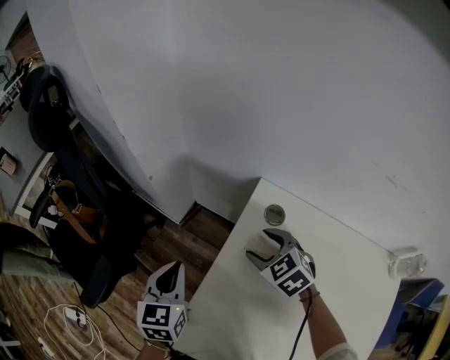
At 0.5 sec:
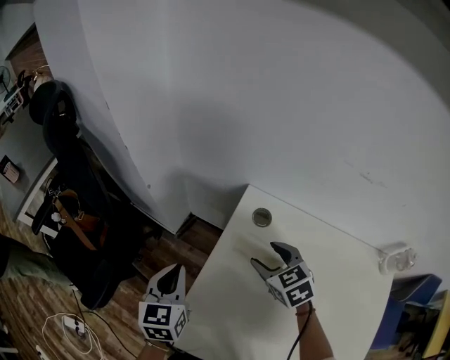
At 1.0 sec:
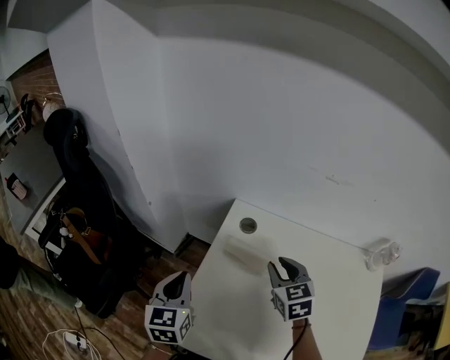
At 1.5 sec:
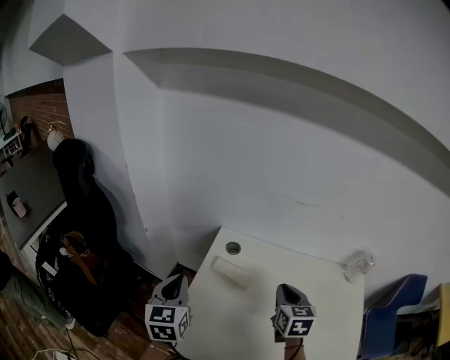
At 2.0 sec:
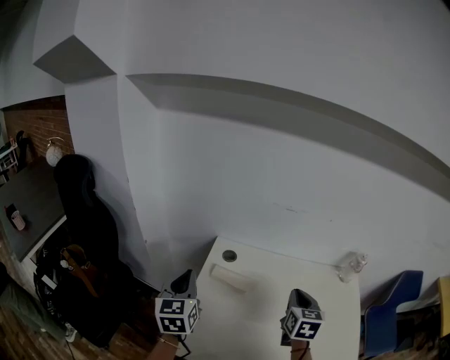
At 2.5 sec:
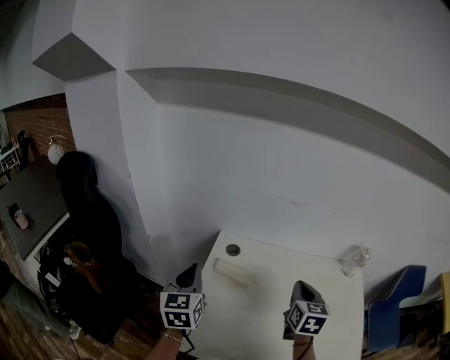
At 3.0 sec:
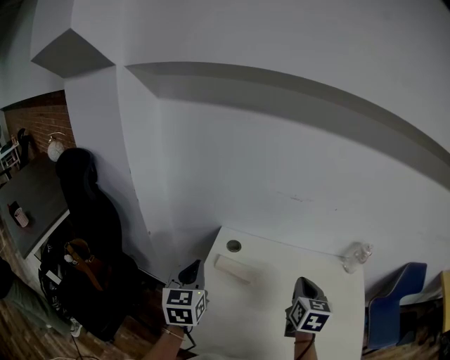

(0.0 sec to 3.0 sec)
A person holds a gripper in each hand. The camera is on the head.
0.0 sec - 1.5 sec: The right gripper shifts some 25 cm to the right, backward and upward, turns by some 60 degrees, and closes its fingers. The left gripper heads upward and to the right, covering some 15 cm.
1.5 sec - 3.0 sec: The left gripper moves roughly 5 cm. Meanwhile the right gripper moves upward, some 5 cm.

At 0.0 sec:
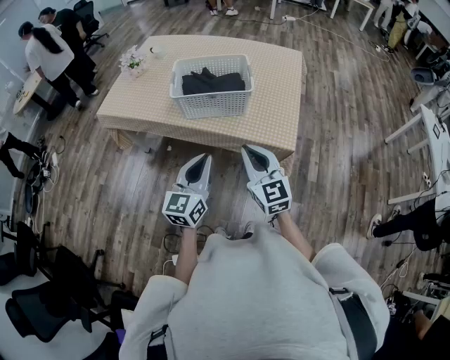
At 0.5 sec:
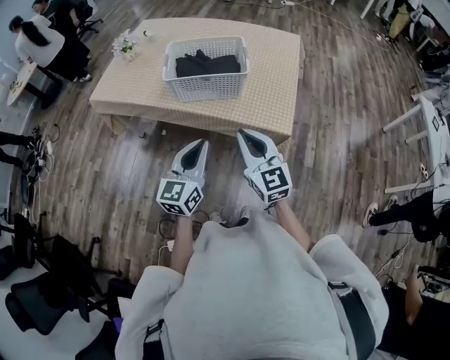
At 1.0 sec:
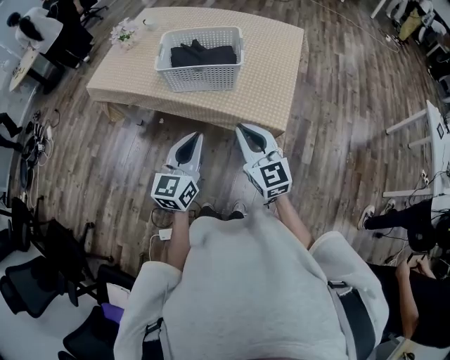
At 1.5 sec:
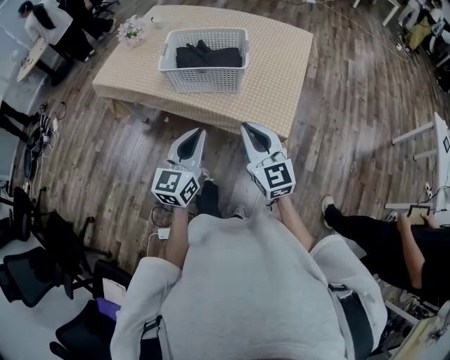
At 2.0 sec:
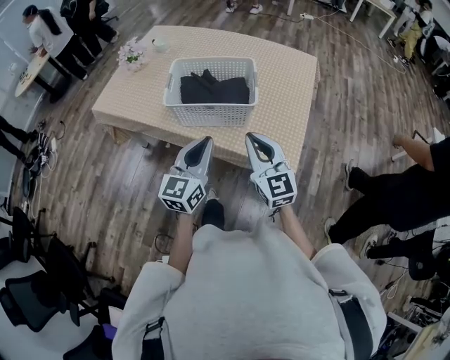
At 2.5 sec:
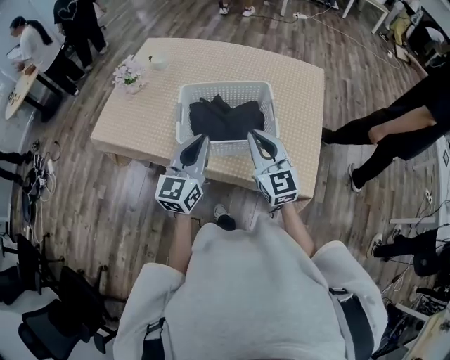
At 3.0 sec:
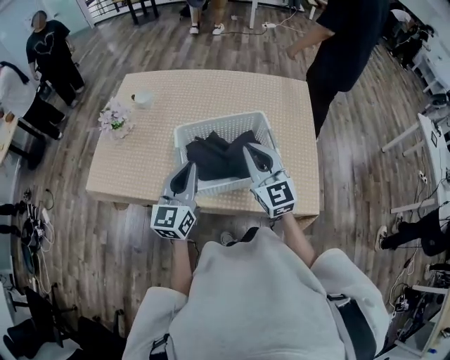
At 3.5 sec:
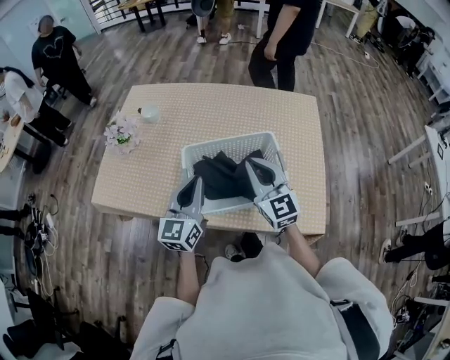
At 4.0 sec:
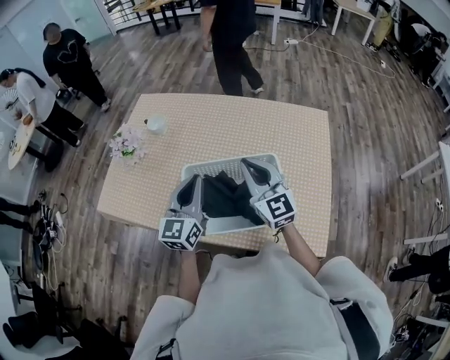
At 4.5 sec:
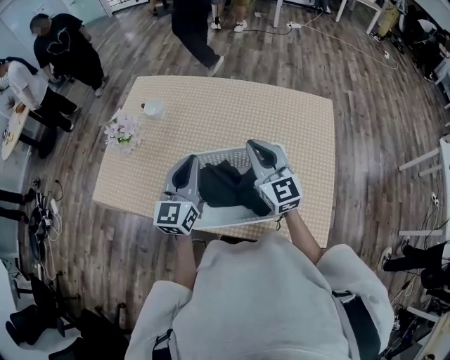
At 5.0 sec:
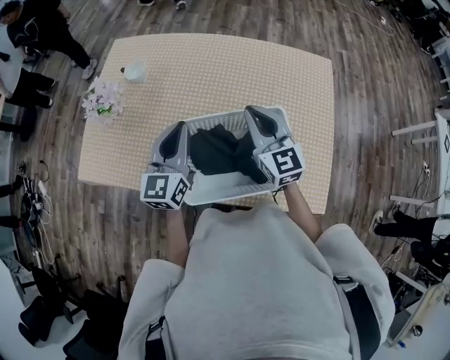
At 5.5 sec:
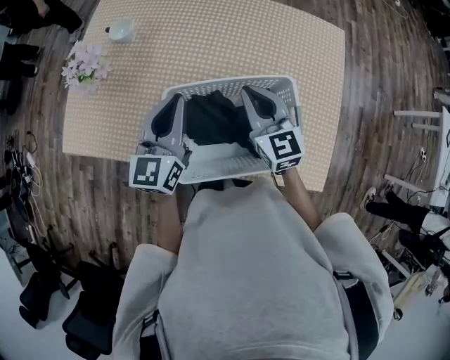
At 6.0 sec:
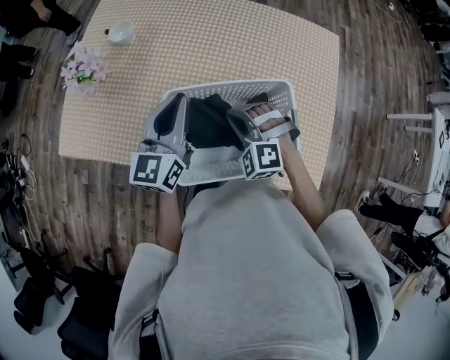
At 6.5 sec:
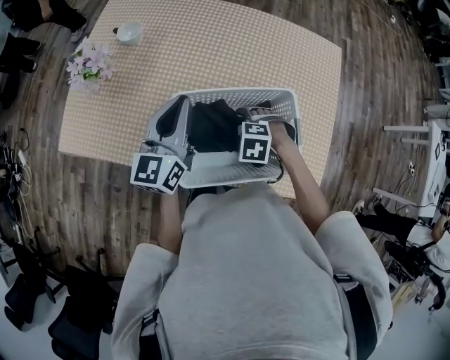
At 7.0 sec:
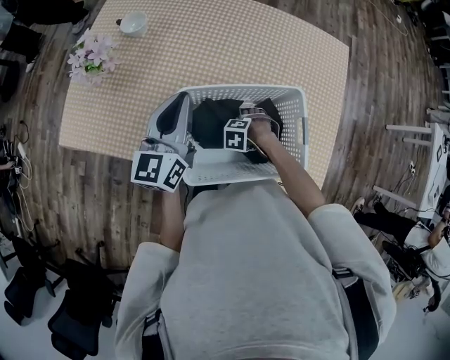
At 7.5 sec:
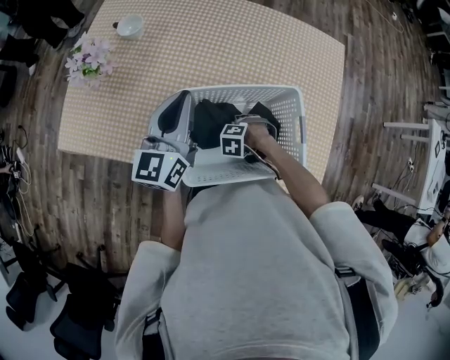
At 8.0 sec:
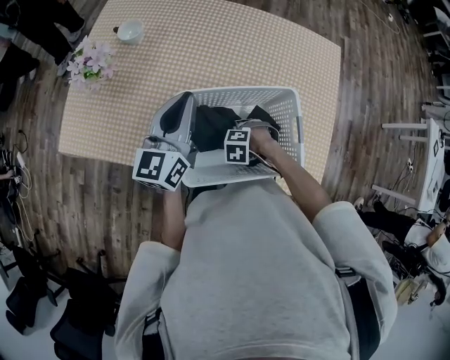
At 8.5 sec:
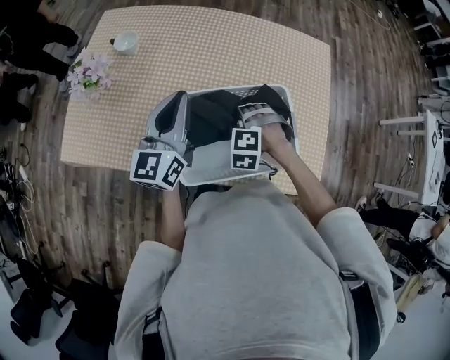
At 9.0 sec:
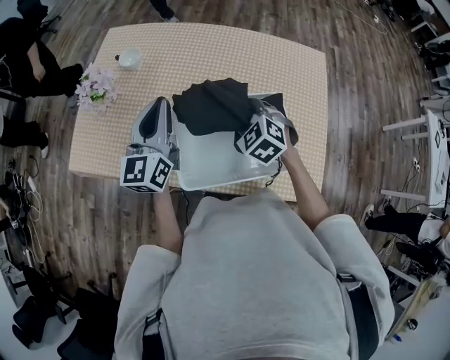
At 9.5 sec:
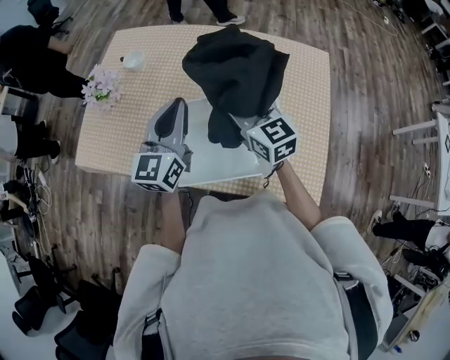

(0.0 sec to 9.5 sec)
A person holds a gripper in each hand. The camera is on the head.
0.0 sec - 2.0 sec: The two grippers go approximately 15 cm forward.
2.0 sec - 4.0 sec: The grippers both shift forward by about 30 cm.
4.0 sec - 5.5 sec: The left gripper travels forward by approximately 5 cm. Meanwhile the right gripper shifts about 10 cm downward and forward.
5.5 sec - 7.5 sec: The right gripper is displaced downward by some 25 cm, tips its fingers downward by about 70 degrees, and opens its fingers.
7.5 sec - 9.5 sec: The left gripper changes place by about 10 cm. Meanwhile the right gripper travels upward by approximately 35 cm, and points its fingers about 80 degrees further upward.

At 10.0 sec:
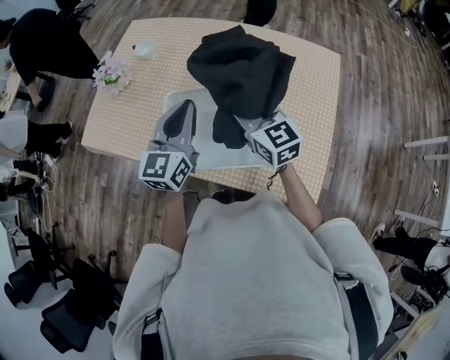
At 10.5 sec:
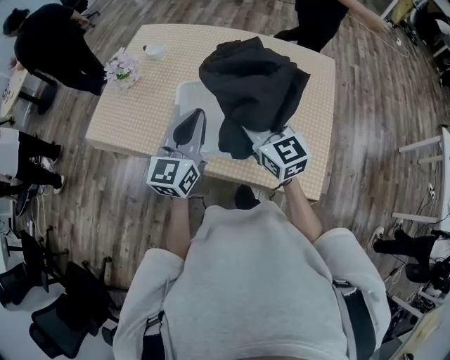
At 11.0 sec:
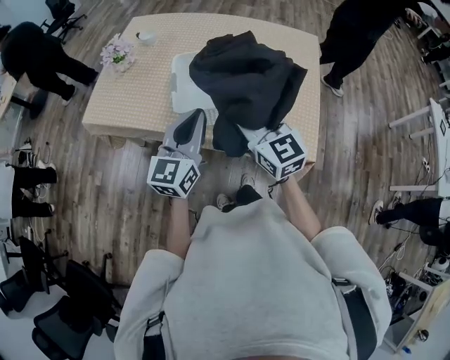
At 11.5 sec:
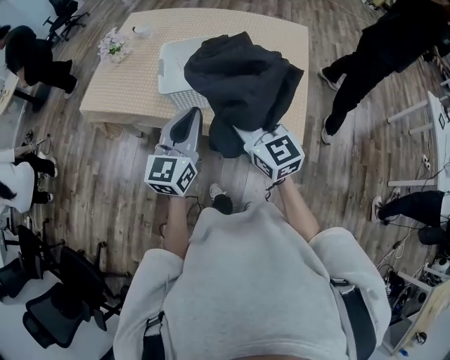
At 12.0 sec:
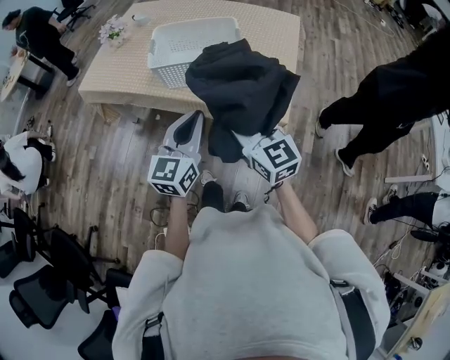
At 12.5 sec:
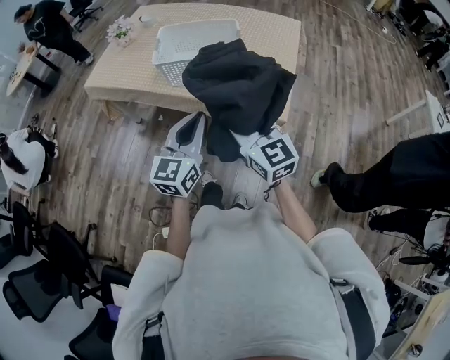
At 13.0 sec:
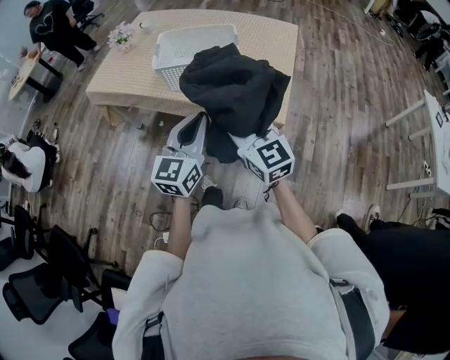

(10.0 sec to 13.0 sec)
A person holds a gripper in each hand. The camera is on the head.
10.0 sec - 11.5 sec: Both grippers travel together backward, about 30 cm.
11.5 sec - 13.0 sec: The grippers both shift backward by roughly 15 cm.

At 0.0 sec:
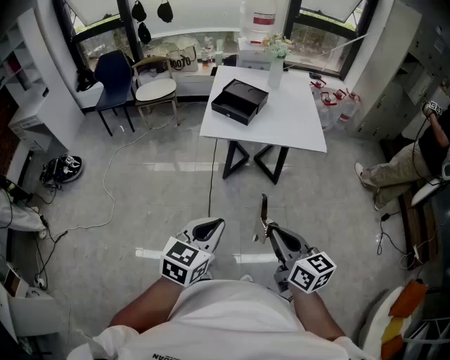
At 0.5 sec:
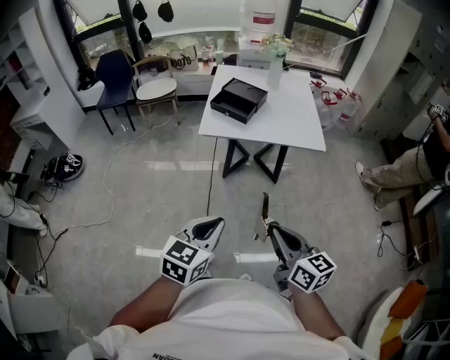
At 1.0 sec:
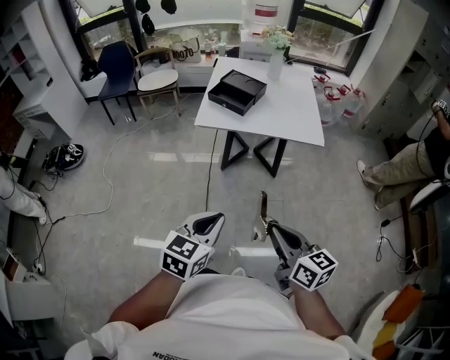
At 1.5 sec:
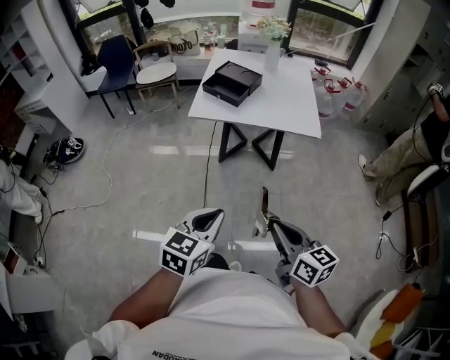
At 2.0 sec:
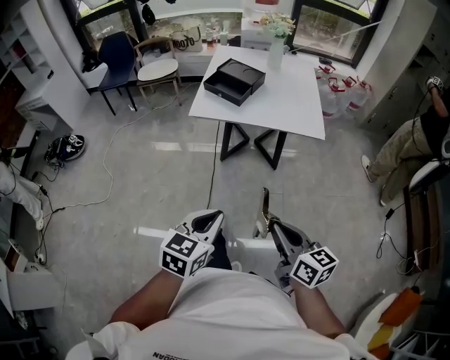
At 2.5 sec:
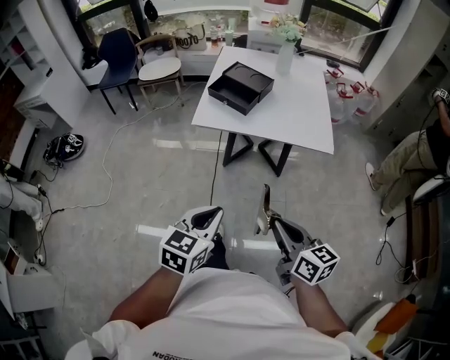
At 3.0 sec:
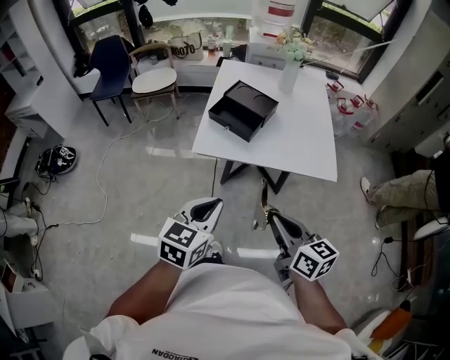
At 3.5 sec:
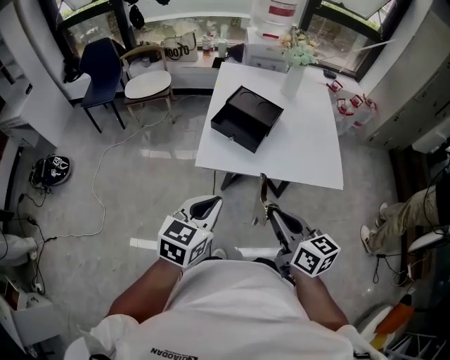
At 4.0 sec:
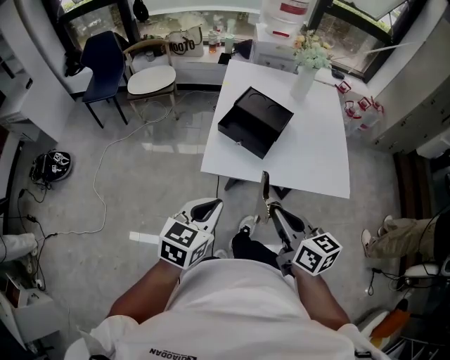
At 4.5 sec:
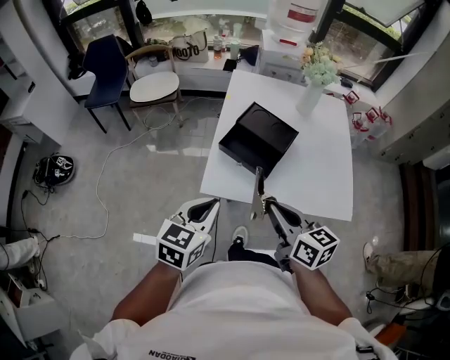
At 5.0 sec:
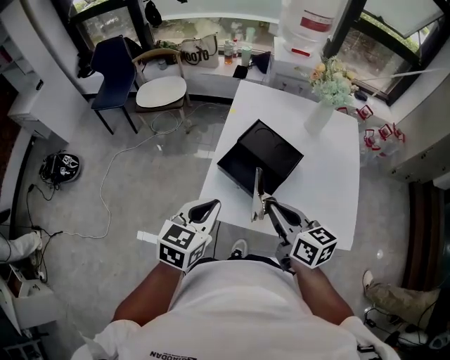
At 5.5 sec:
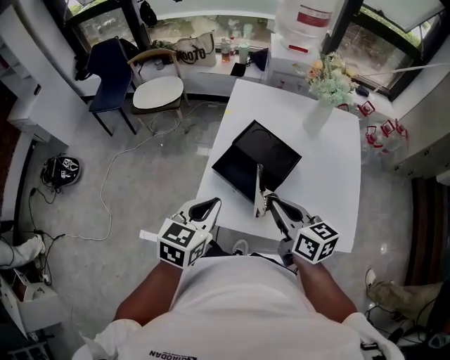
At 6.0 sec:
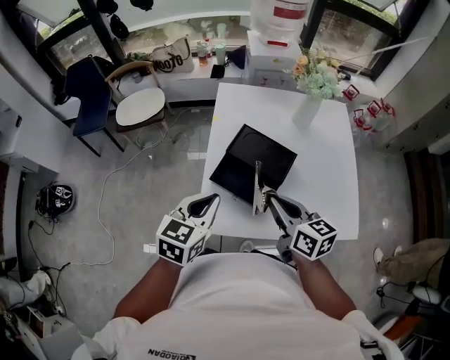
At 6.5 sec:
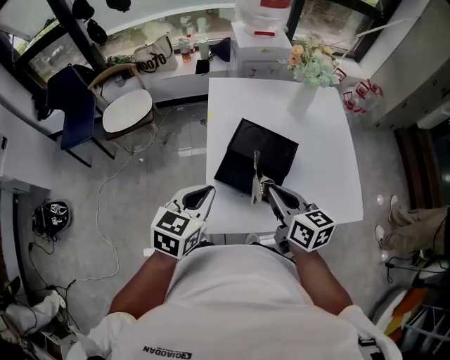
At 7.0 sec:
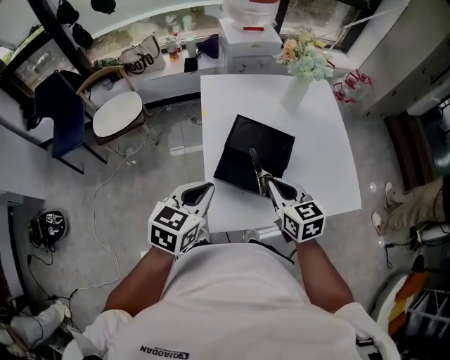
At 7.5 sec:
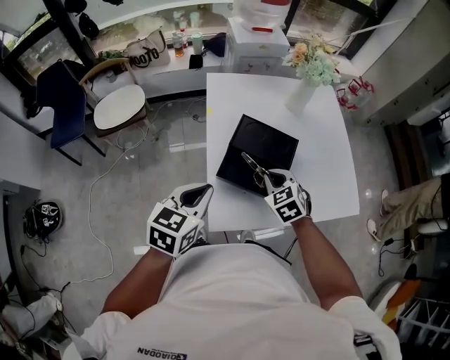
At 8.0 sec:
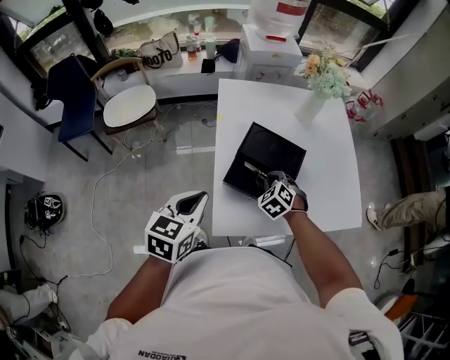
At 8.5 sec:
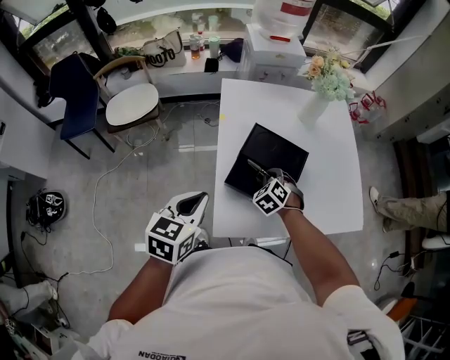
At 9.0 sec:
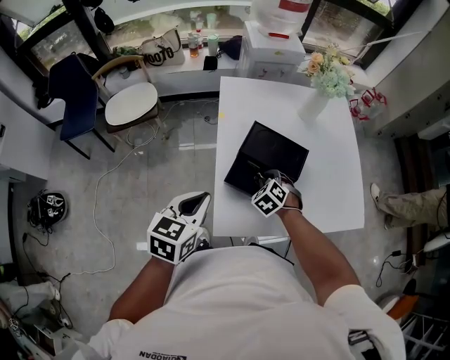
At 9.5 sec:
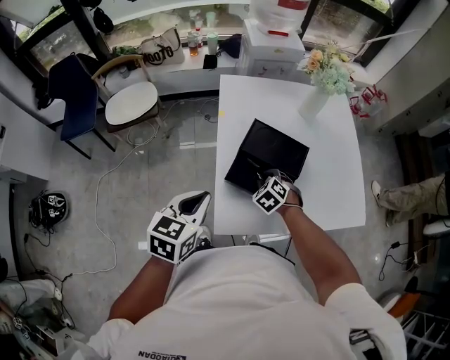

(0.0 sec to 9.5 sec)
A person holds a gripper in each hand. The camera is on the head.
0.0 sec - 2.0 sec: Both grippers move to the right, some 10 cm.
2.0 sec - 4.0 sec: The two grippers go some 35 cm forward.
4.0 sec - 5.5 sec: Both grippers travel together forward, some 20 cm.
5.5 sec - 7.5 sec: The left gripper ends up some 10 cm from where it was. Meanwhile the right gripper ends up approximately 15 cm from where it was, and changes its angle by approximately 50 degrees.
7.5 sec - 9.5 sec: The right gripper goes roughly 10 cm downward, changes its angle by approximately 20 degrees, and opens its fingers.

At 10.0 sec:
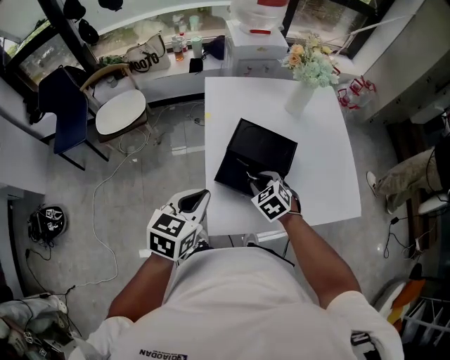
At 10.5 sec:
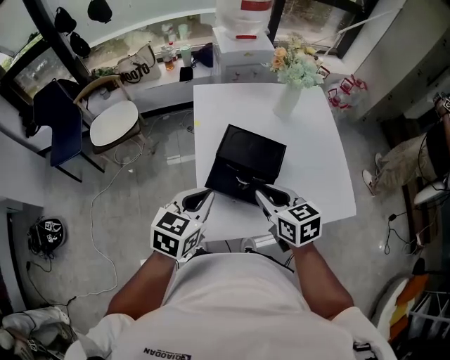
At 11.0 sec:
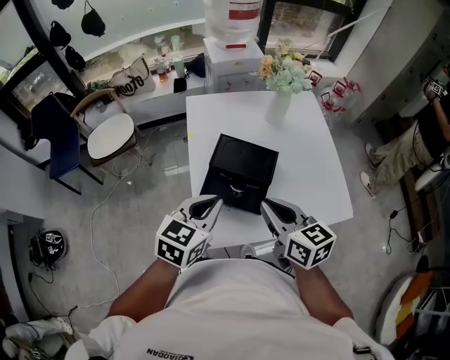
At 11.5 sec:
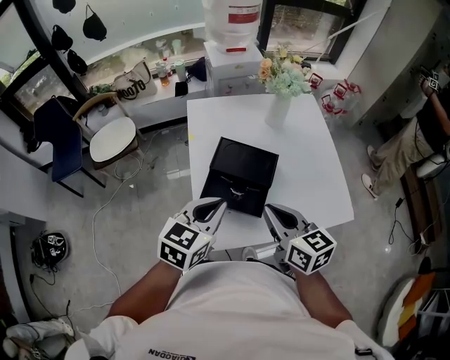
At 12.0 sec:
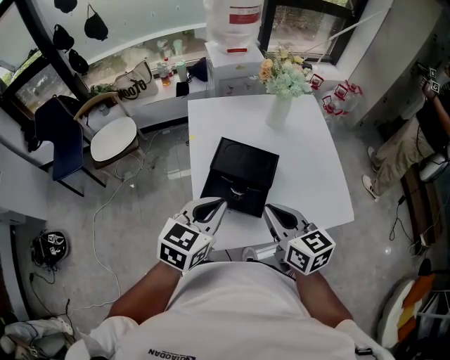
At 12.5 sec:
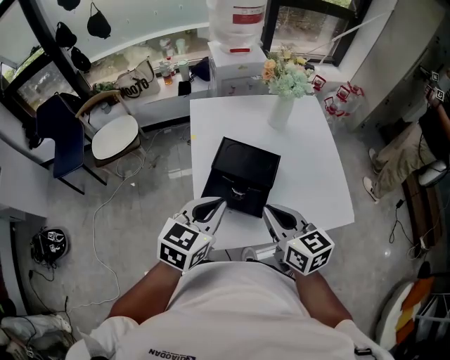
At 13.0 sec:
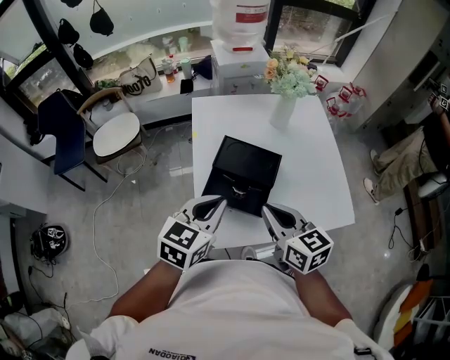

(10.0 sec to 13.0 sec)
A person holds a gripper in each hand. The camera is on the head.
10.0 sec - 11.5 sec: The left gripper shifts some 10 cm to the right; the right gripper is displaced upward by some 20 cm, tips its fingers upward by roughly 40 degrees, and closes.
11.5 sec - 13.0 sec: Both grippers stay put.
